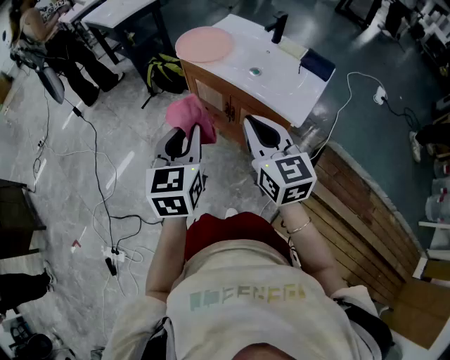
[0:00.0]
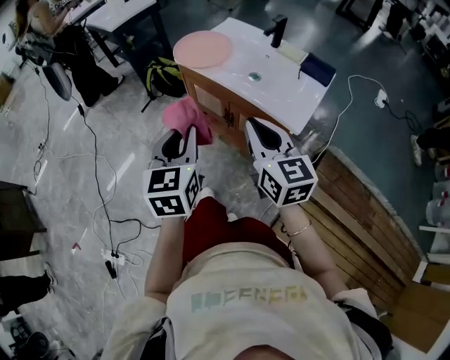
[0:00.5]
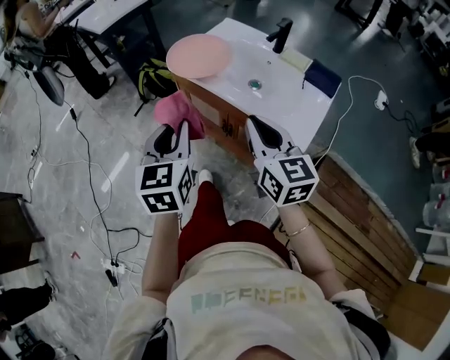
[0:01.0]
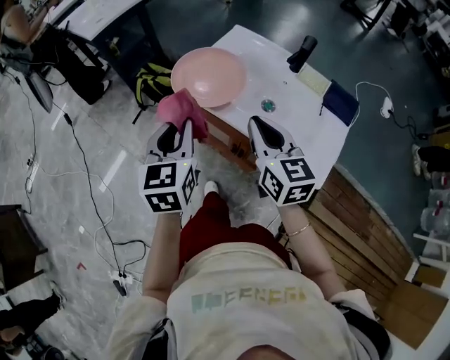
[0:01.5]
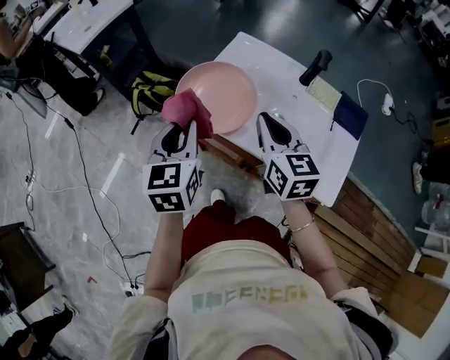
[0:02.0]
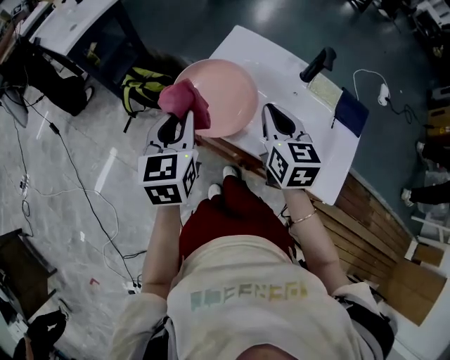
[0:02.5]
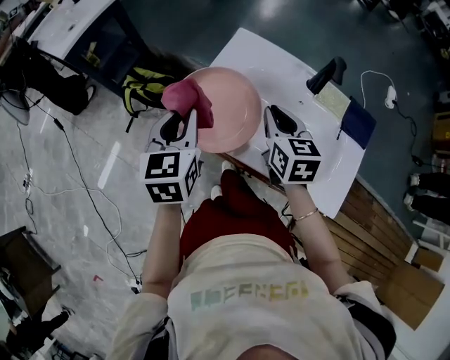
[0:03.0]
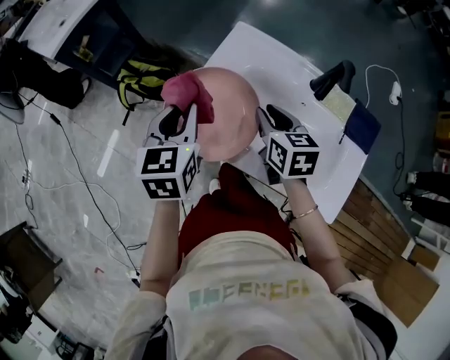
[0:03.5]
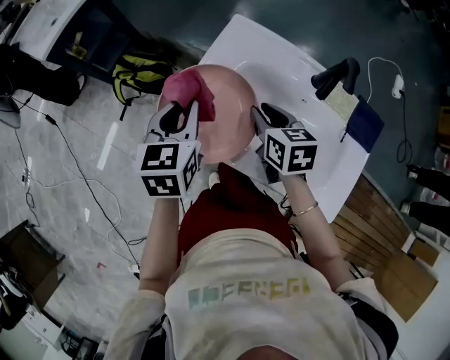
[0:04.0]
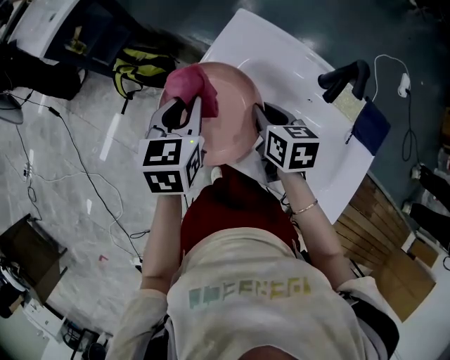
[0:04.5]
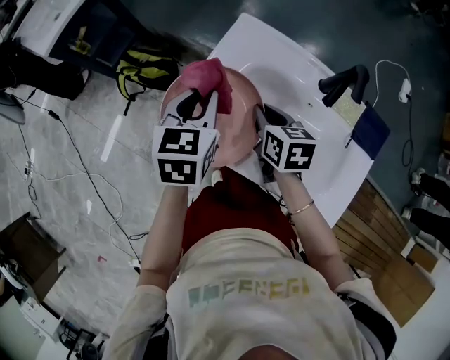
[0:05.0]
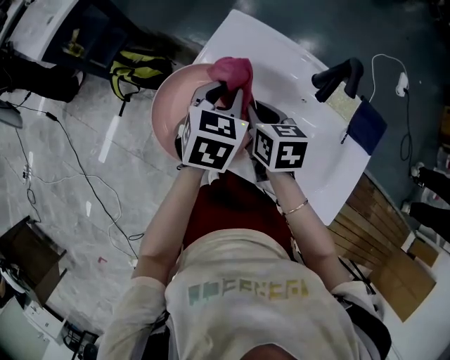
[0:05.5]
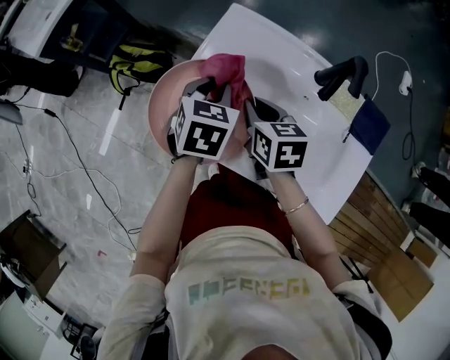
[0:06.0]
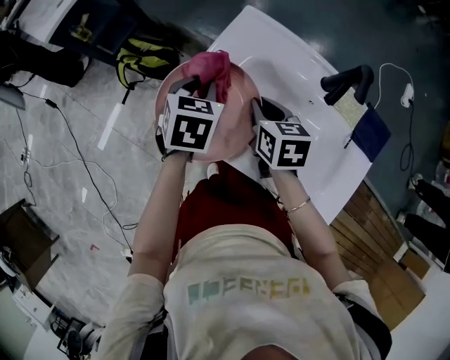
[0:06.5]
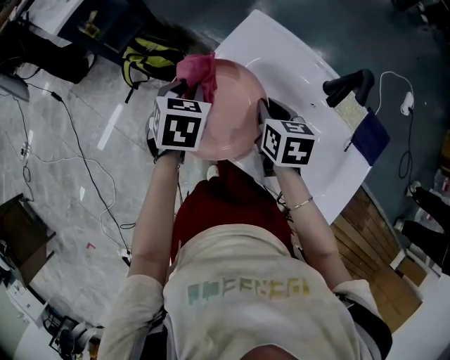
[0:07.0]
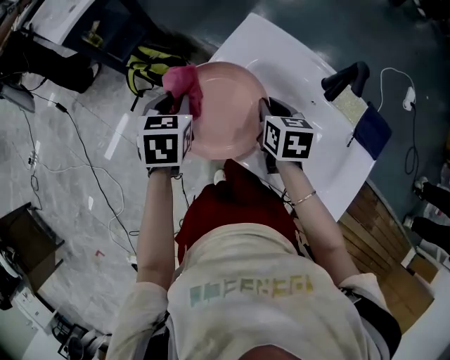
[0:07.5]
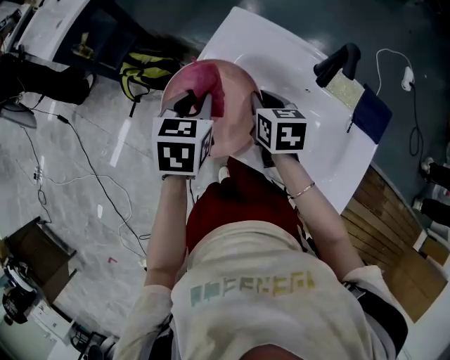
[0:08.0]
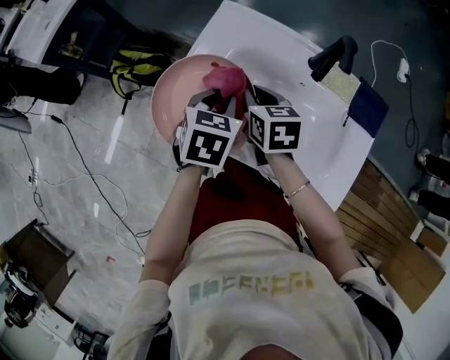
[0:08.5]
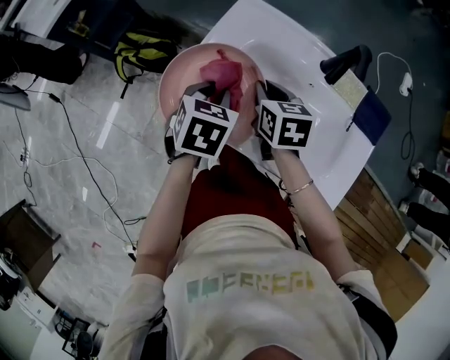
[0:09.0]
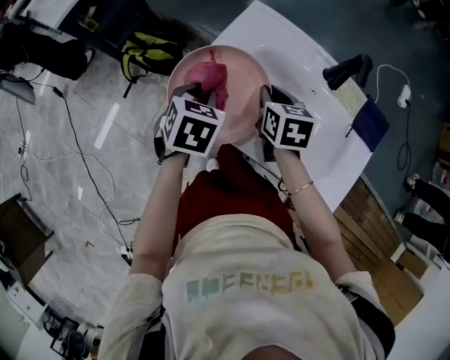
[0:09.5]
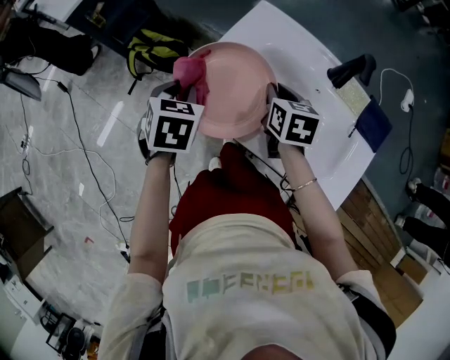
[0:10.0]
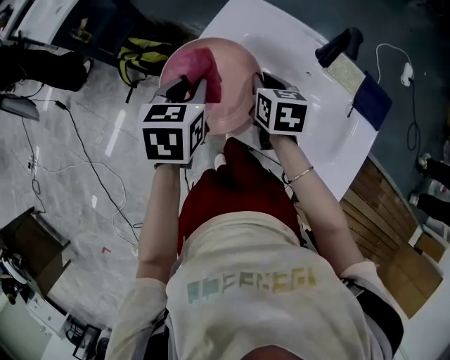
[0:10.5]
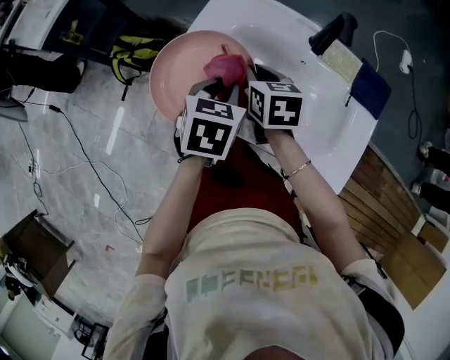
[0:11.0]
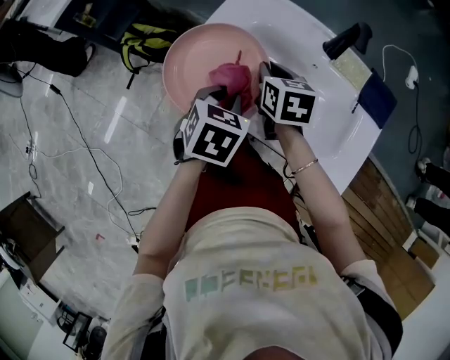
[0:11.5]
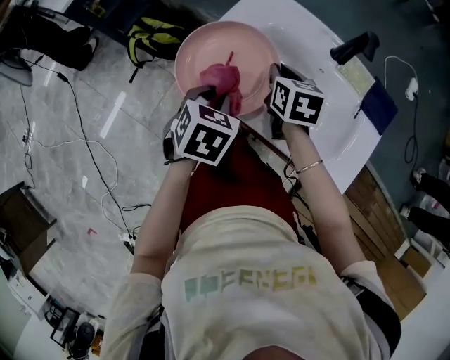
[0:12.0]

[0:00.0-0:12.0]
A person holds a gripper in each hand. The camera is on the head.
0:00.0 to 0:02.0: The grippers both shift forward by about 40 cm.
0:02.0 to 0:04.0: The grippers both shift forward and downward by approximately 20 cm. The right gripper swivels about 30 degrees.
0:04.0 to 0:06.0: The left gripper goes roughly 10 cm to the right and downward.
0:06.0 to 0:08.0: The left gripper goes some 5 cm to the left.
0:08.0 to 0:10.0: The left gripper travels to the left by some 10 cm.
0:10.0 to 0:12.0: The left gripper shifts roughly 10 cm to the right and backward.

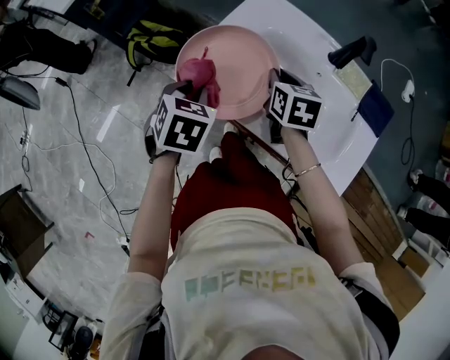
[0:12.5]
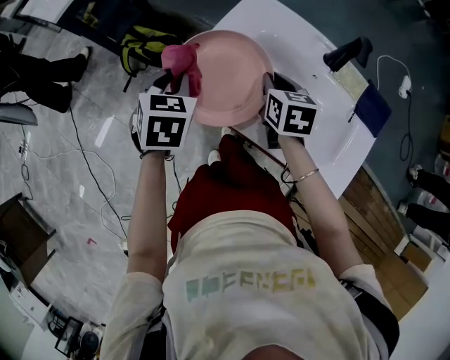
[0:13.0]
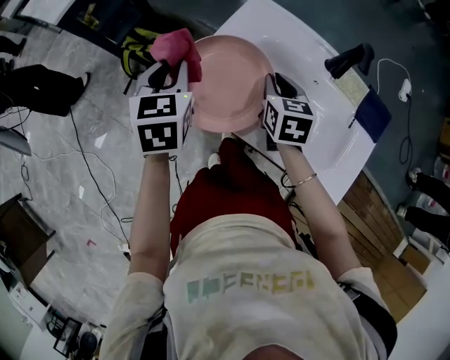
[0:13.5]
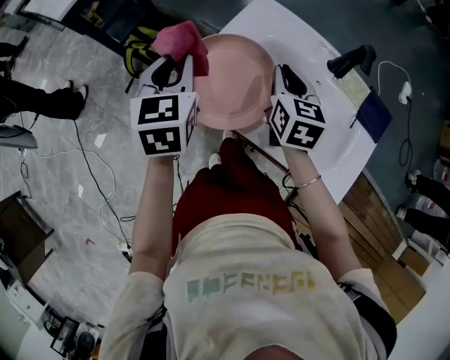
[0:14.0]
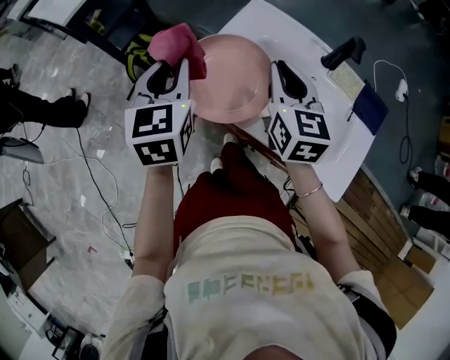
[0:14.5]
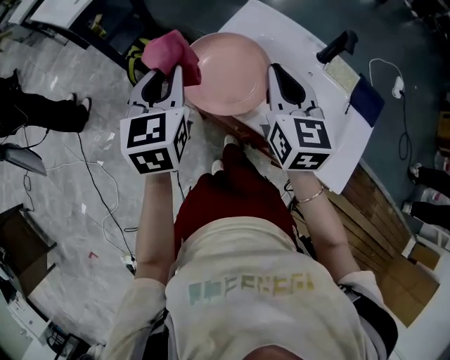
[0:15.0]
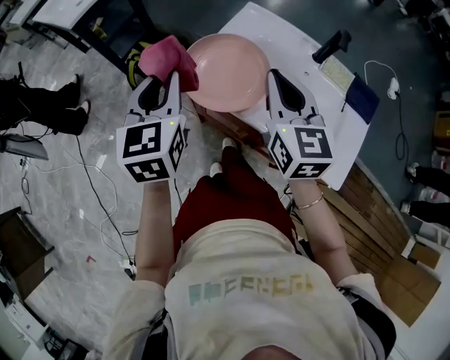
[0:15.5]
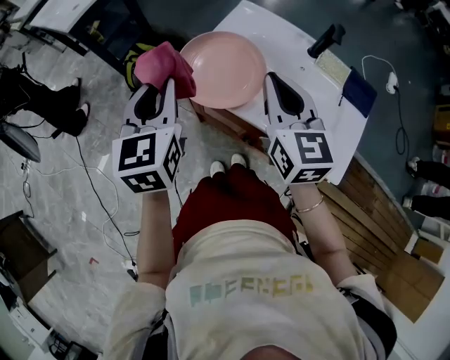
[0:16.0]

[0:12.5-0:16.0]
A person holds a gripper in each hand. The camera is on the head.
0:12.5 to 0:14.5: Both grippers travel together upward, some 15 cm. The right gripper swivels roughly 30 degrees. The left gripper angles its fingers upward, by approximately 30 degrees.
0:14.5 to 0:16.0: The right gripper goes about 10 cm backward and upward; the left gripper goes about 10 cm backward.

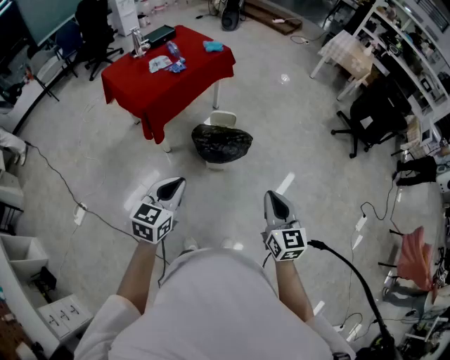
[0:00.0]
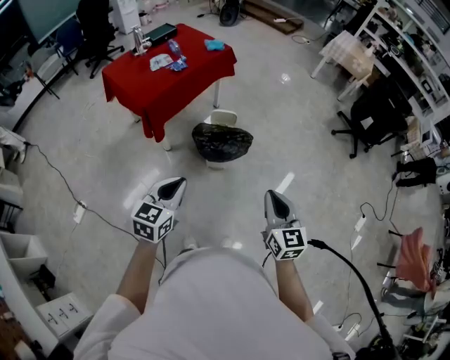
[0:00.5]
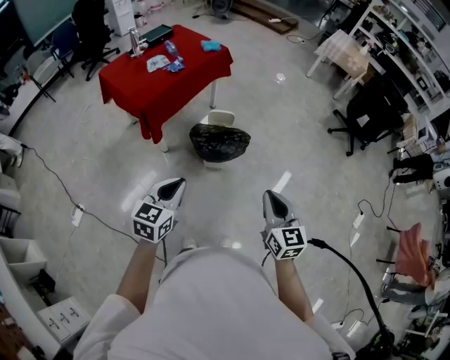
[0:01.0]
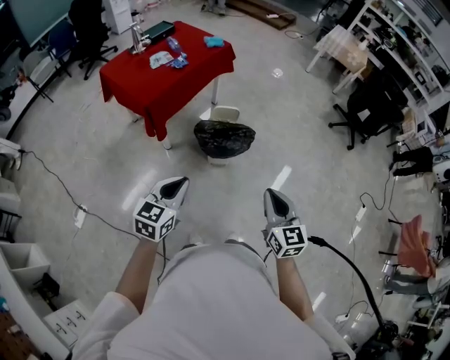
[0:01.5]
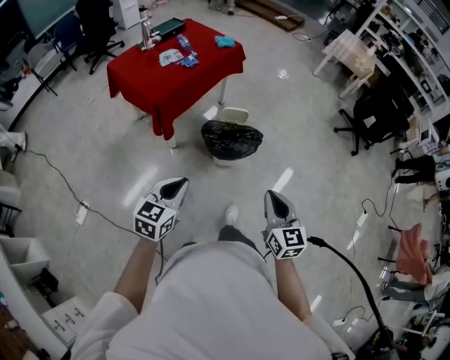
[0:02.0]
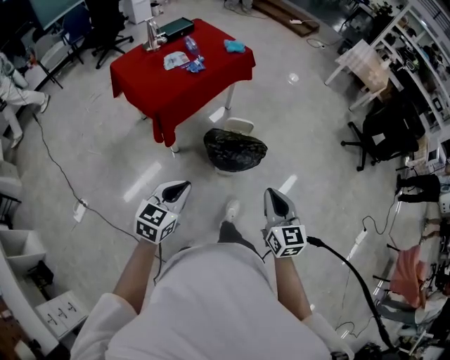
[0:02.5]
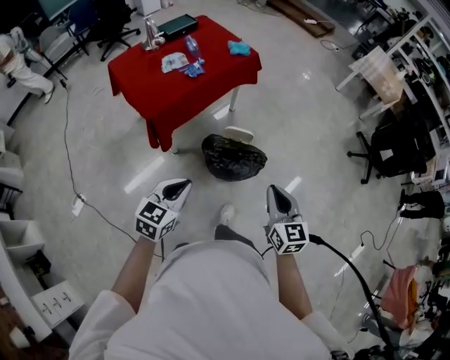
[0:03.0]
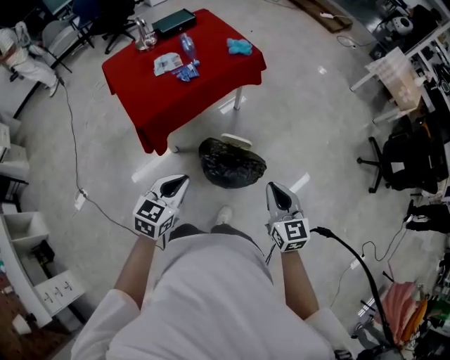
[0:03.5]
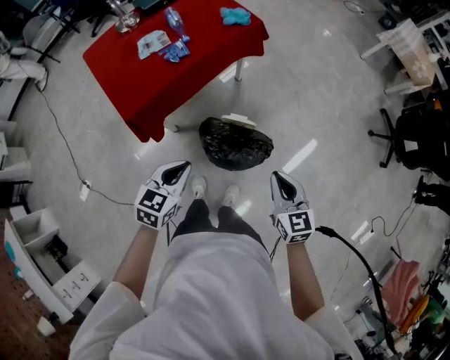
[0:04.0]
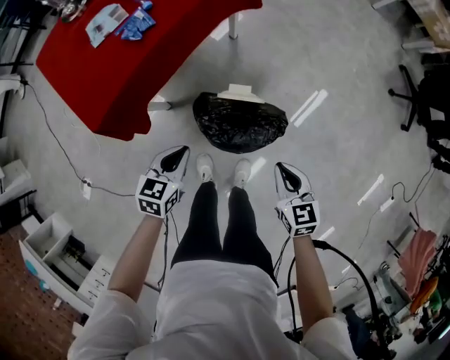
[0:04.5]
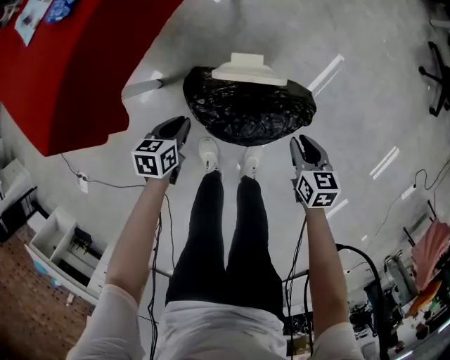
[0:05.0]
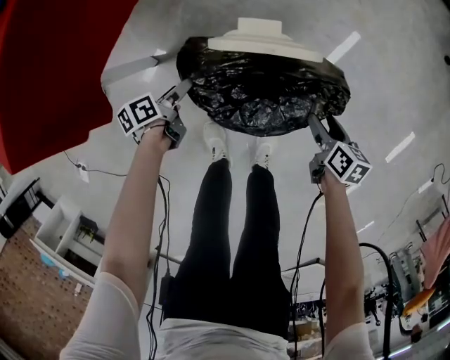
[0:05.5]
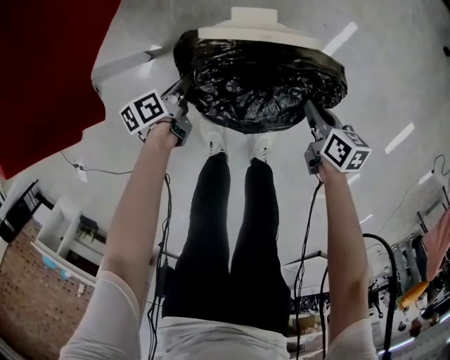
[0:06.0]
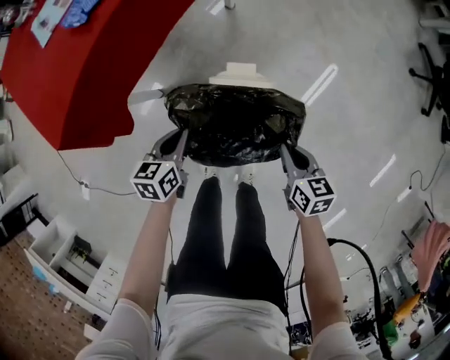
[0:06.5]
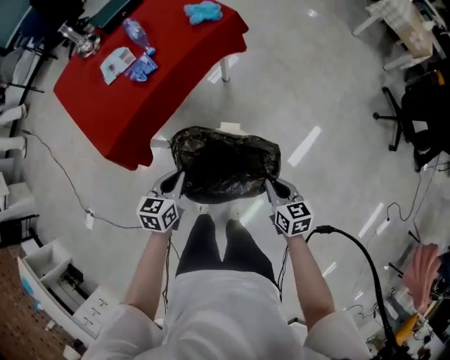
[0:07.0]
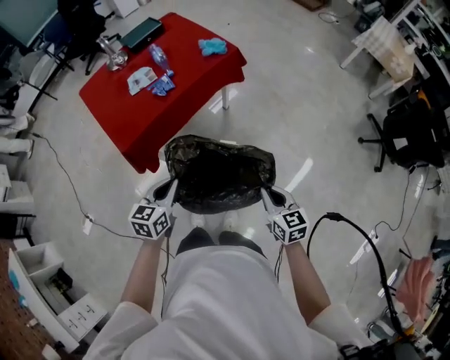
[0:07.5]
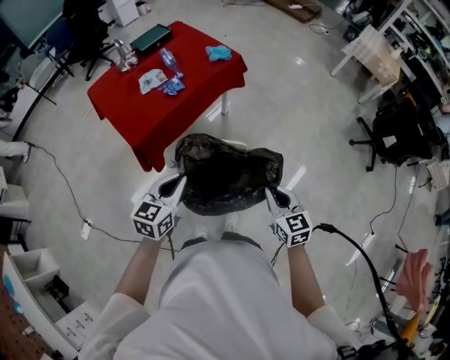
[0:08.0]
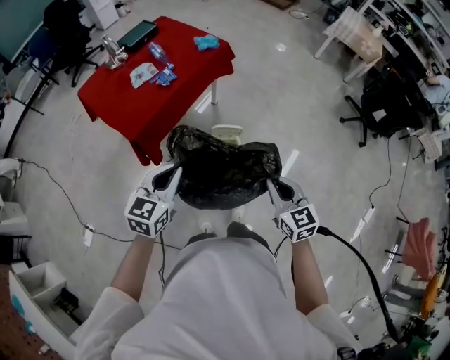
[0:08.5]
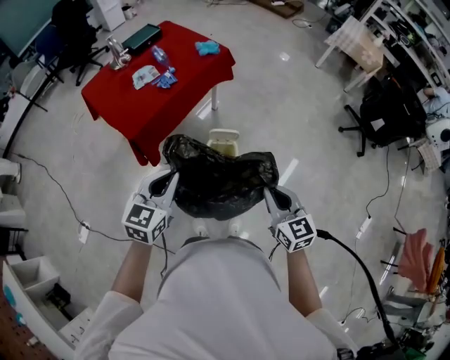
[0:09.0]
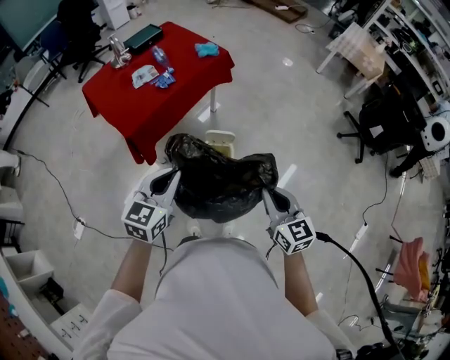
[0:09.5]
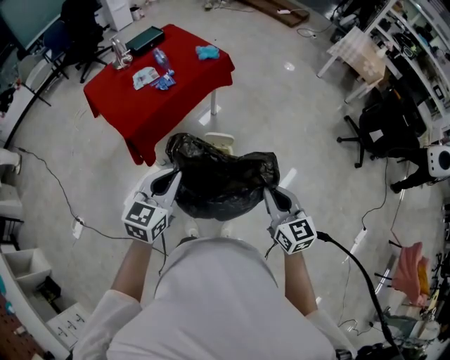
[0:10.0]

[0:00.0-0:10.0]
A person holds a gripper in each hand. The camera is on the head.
0:00.0 to 0:02.0: Both grippers travel together to the left, approximately 10 cm.
0:02.0 to 0:04.0: Both grippers travel together forward, about 40 cm.
0:04.0 to 0:06.0: The two grippers go approximately 60 cm downward. The right gripper twists roughly 50 degrees clockwise, seen from behind, and opens and closes again. Meanwhile the left gripper rotates around the line of its fingers by about 60 degrees, counterclockwise from behind, and opens, then closes once more.
0:06.0 to 0:08.0: Both grippers move upward, approximately 70 cm. The left gripper twists approximately 50 degrees clockwise, seen from behind. Meanwhile the right gripper rolls counterclockwise, seen from behind, by about 50 degrees.
0:08.0 to 0:10.0: Both grippers travel together backward and upward, some 10 cm.

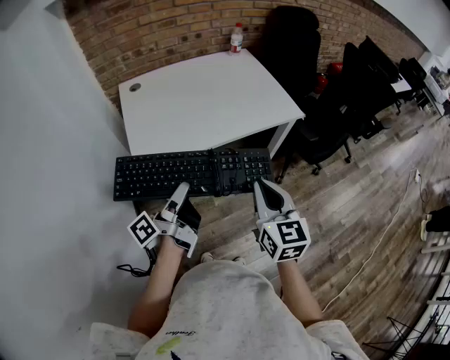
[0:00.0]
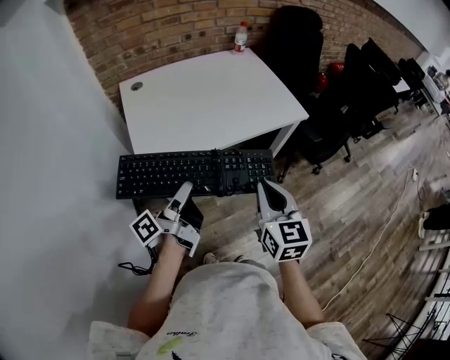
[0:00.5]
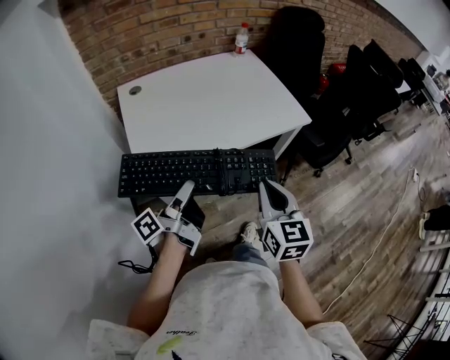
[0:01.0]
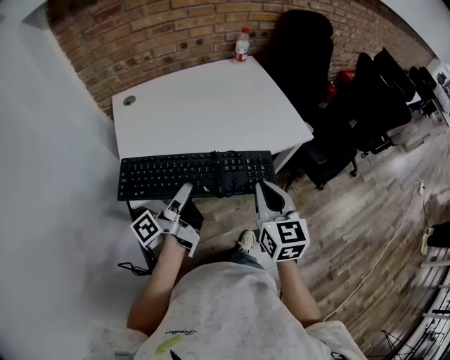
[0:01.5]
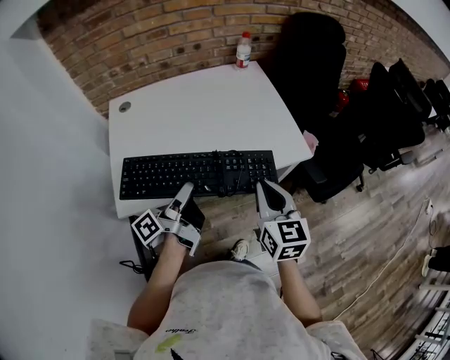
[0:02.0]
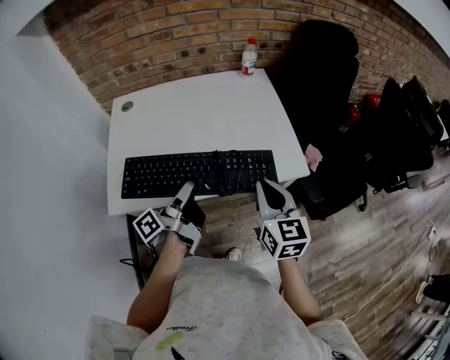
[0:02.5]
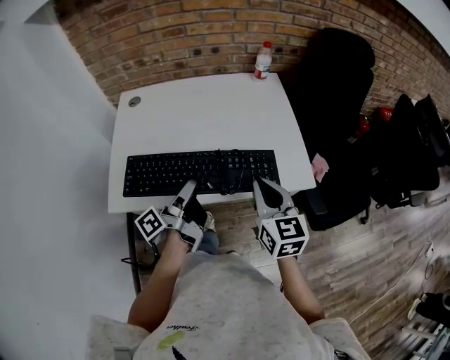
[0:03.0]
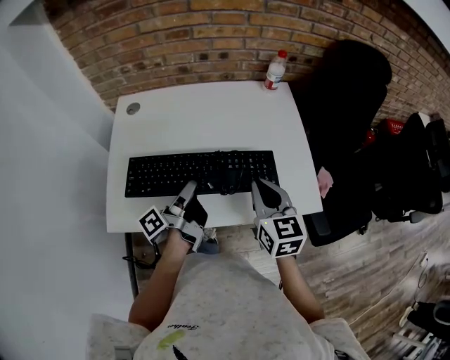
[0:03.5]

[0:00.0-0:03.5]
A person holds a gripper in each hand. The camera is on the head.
0:00.0 to 0:02.0: The right gripper shifts by some 25 cm.
0:02.0 to 0:03.5: The right gripper moves some 20 cm.
